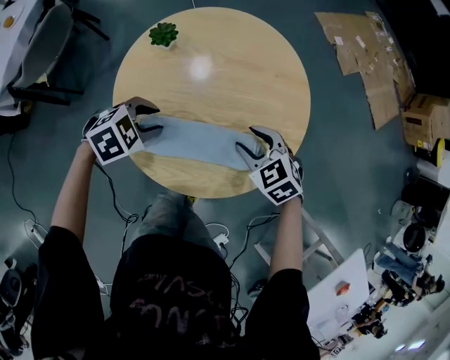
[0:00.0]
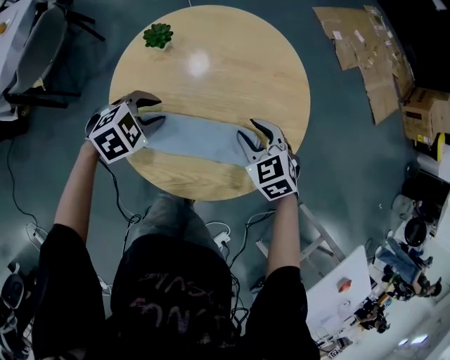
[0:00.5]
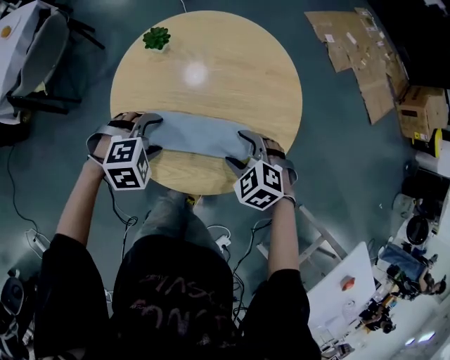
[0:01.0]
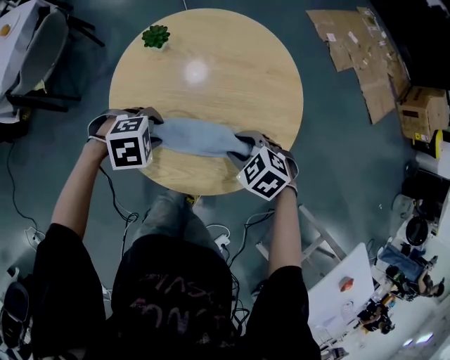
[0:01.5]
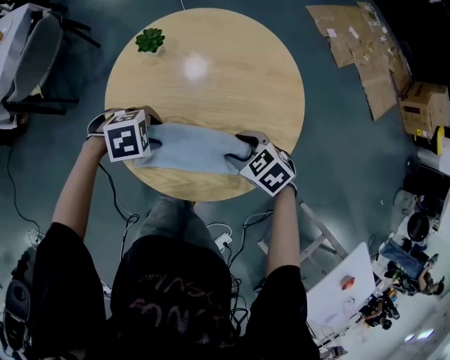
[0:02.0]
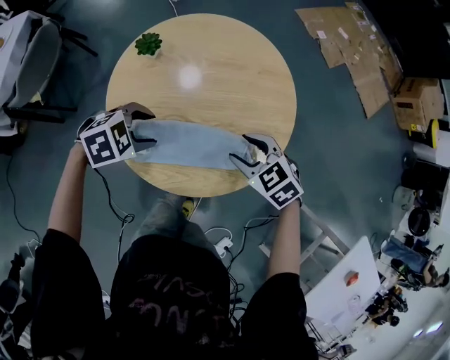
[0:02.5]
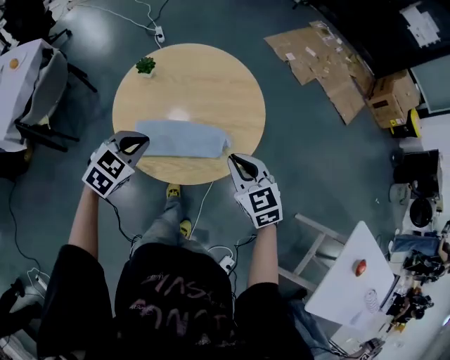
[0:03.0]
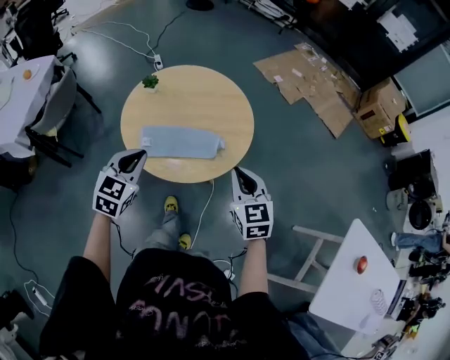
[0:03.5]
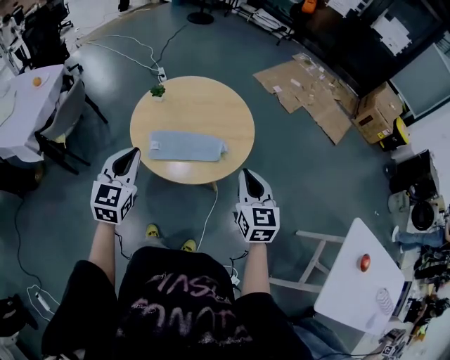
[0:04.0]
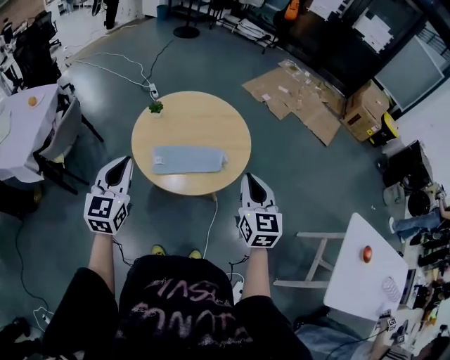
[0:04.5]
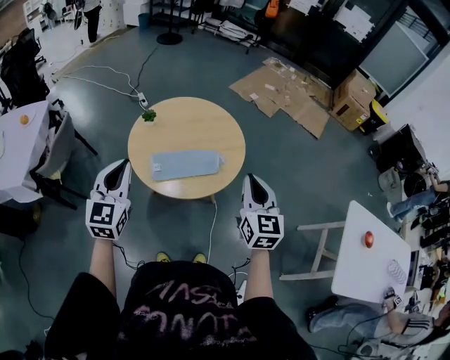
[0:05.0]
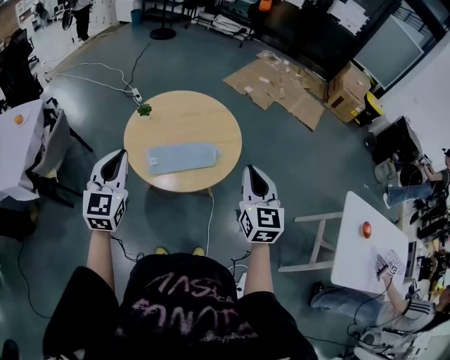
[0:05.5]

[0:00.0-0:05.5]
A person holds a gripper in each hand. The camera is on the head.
0:02.0 to 0:03.5: Both grippers travel together upward, approximately 20 cm. The right gripper points its fingers some 40 degrees further upward, and closes up; the left gripper points its fingers about 40 degrees further upward, and closes its fingers.
0:03.5 to 0:05.5: The left gripper travels upward and to the left by roughly 15 cm, and swivels some 20 degrees. Meanwhile the right gripper travels upward and backward by roughly 15 cm, and rotates some 30 degrees.

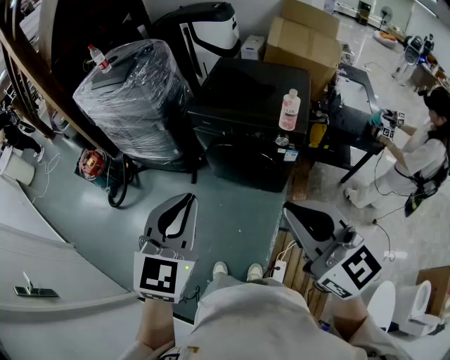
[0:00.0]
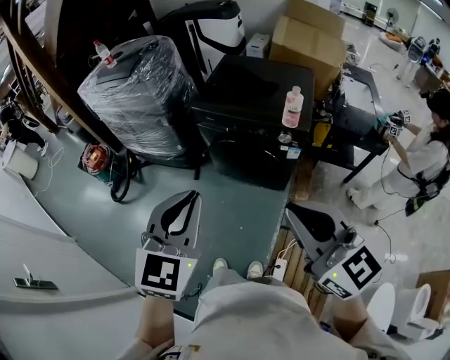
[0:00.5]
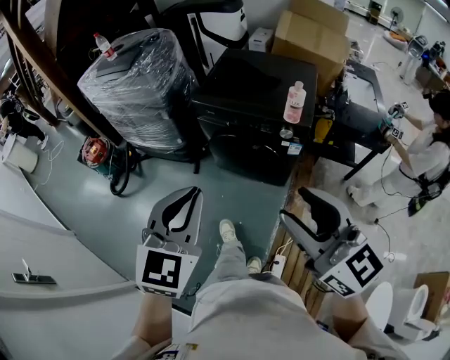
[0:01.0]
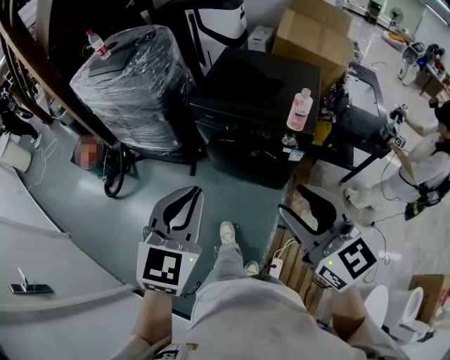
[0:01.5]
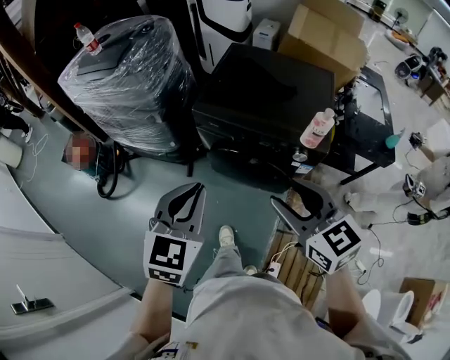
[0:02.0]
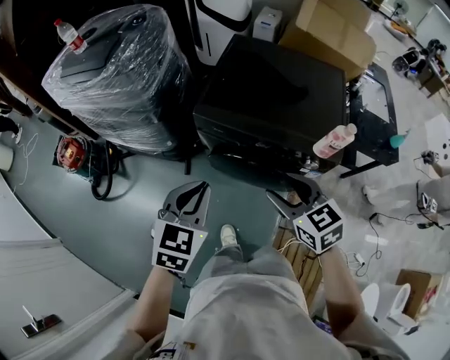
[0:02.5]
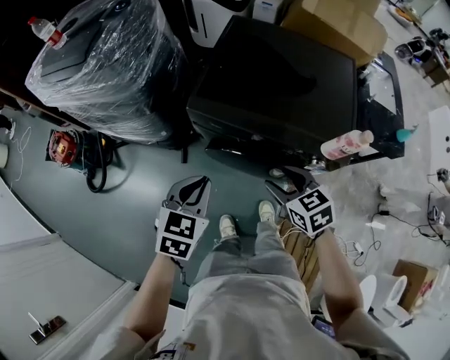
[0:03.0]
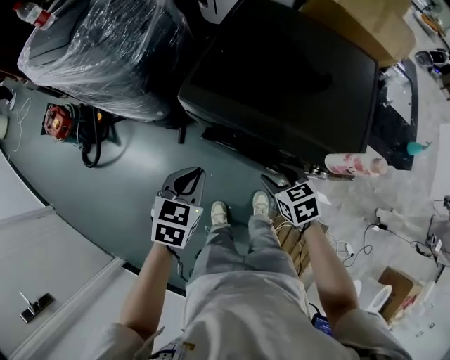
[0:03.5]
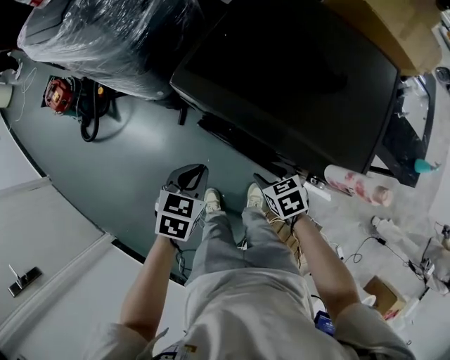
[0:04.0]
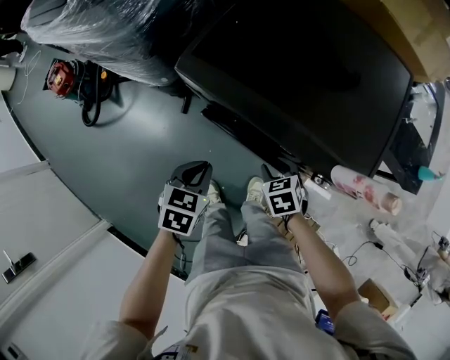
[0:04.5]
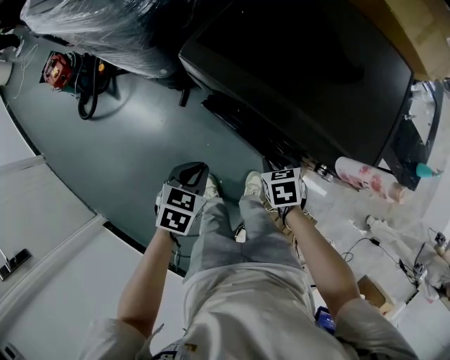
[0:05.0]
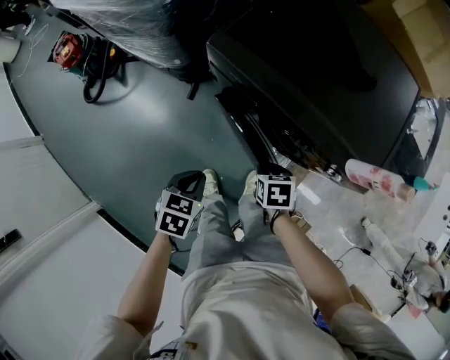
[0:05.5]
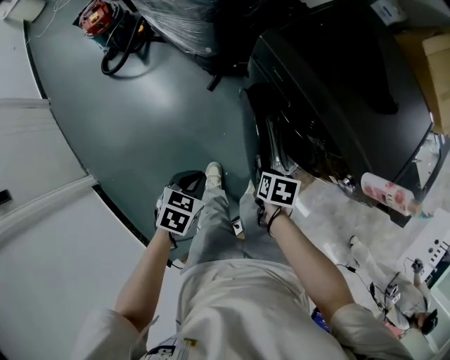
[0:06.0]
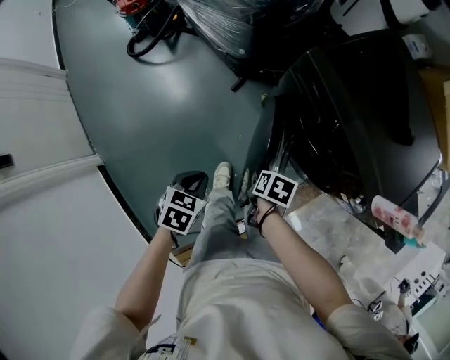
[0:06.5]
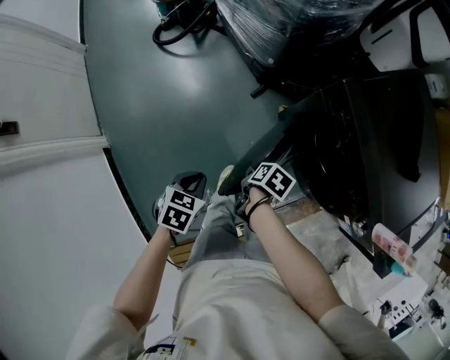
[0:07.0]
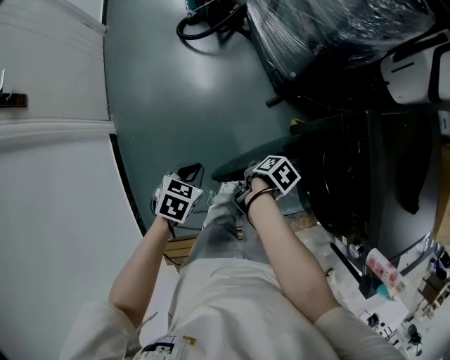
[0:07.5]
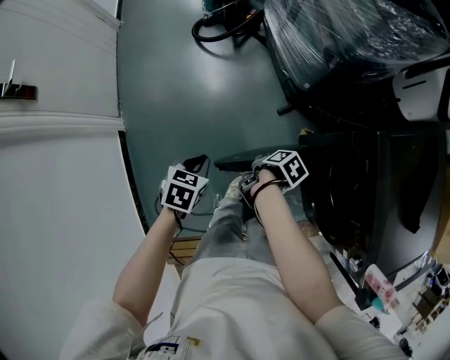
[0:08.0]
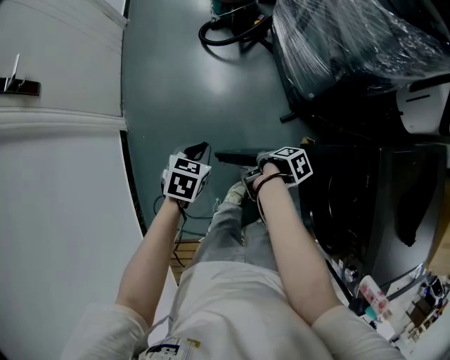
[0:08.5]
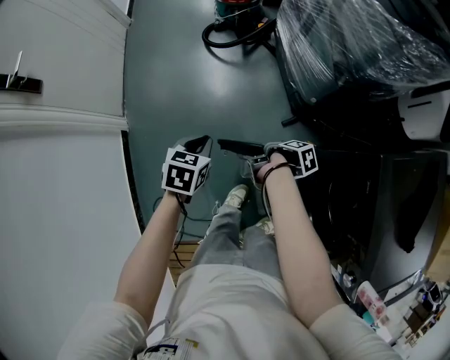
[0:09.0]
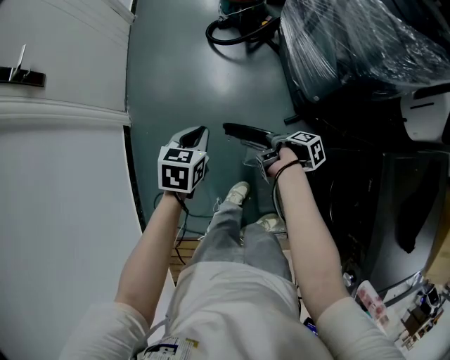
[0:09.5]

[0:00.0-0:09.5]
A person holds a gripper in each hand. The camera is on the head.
0:00.0 to 0:02.0: Both grippers move forward and downward, about 25 cm. The right gripper opens its fingers.
0:02.0 to 0:04.0: Both grippers travel together downward and forward, roughly 40 cm. The right gripper points its fingers roughly 40 degrees further downward. Meanwhile the left gripper changes its angle by approximately 40 degrees.
0:04.0 to 0:05.5: The left gripper goes roughly 15 cm backward and downward, while the right gripper changes place by roughly 5 cm, and changes its angle by about 20 degrees.
0:05.5 to 0:07.5: The left gripper ends up roughly 25 cm from where it was, and turns by approximately 30 degrees, while the right gripper ends up approximately 30 cm from where it was, and swivels roughly 30 degrees.
0:07.5 to 0:09.5: Both grippers move forward, approximately 15 cm. The left gripper turns by about 30 degrees; the right gripper swivels roughly 20 degrees.

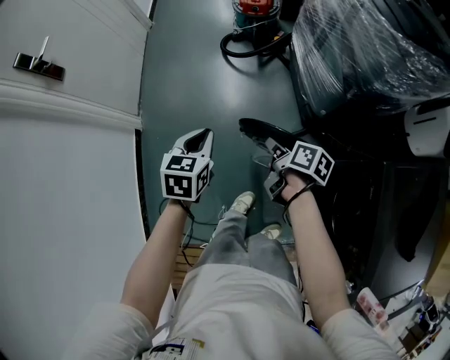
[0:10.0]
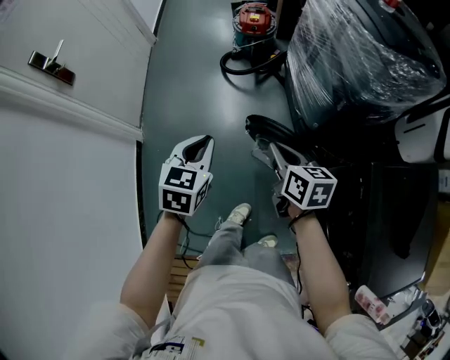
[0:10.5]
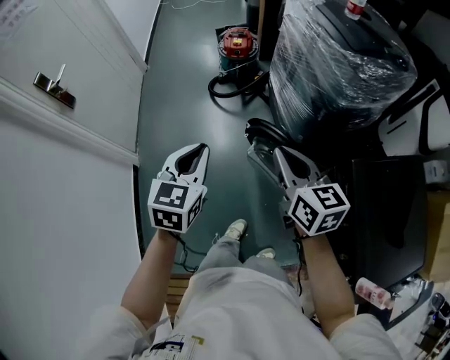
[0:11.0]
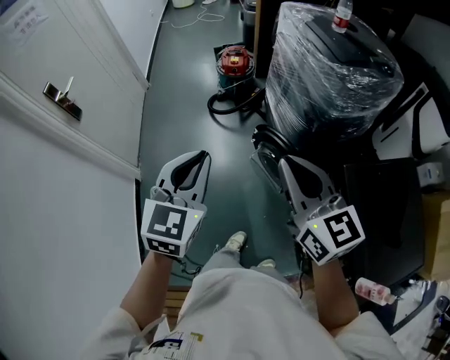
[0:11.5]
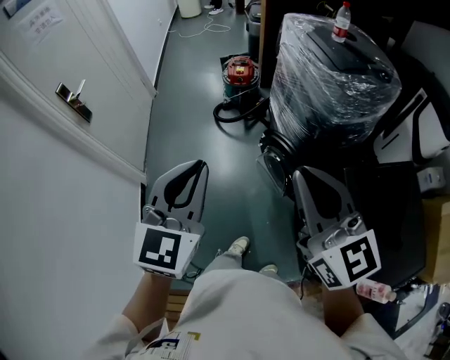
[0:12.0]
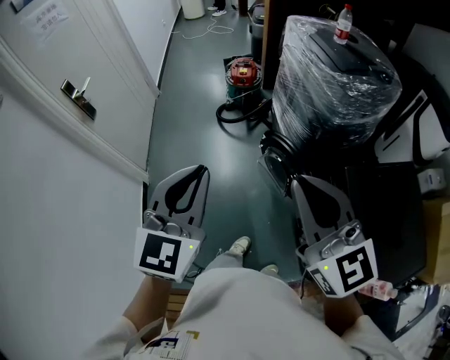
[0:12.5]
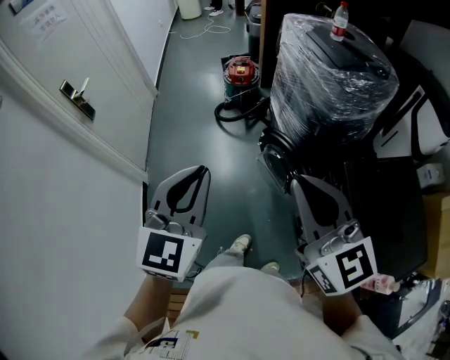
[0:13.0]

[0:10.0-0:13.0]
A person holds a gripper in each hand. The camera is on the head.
0:10.0 to 0:11.5: Both grippers travel together upward, roughly 35 cm. The right gripper rolls counterclockwise, seen from behind, by roughly 60 degrees. The left gripper turns by some 30 degrees.
0:11.5 to 0:13.0: Both grippers travel together backward and upward, approximately 10 cm.

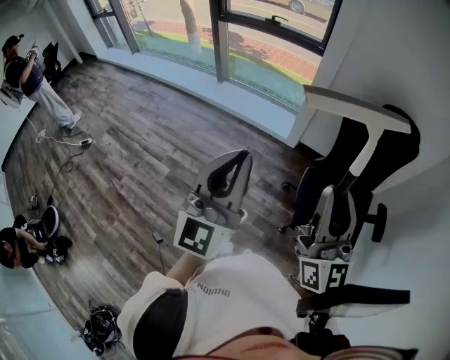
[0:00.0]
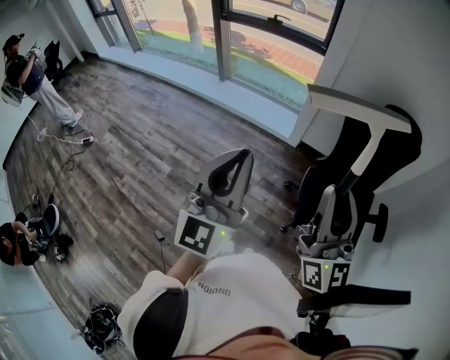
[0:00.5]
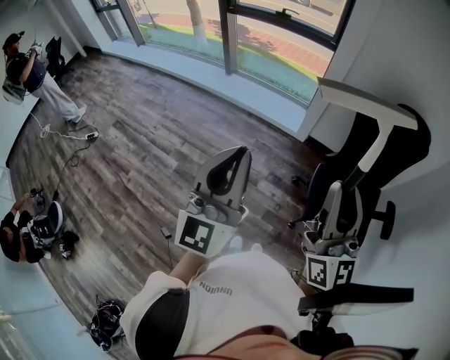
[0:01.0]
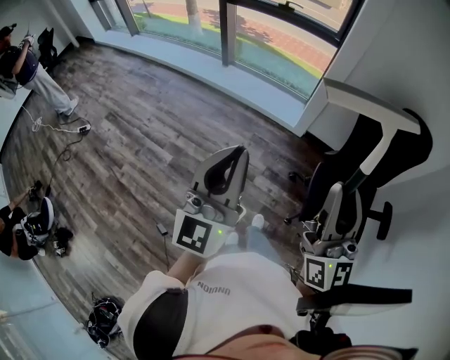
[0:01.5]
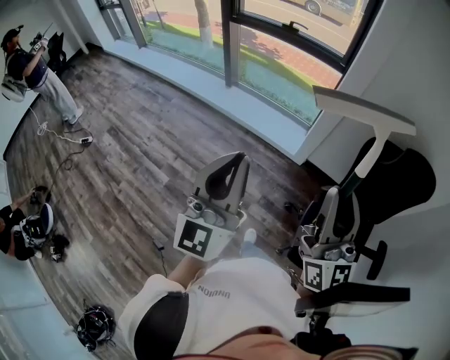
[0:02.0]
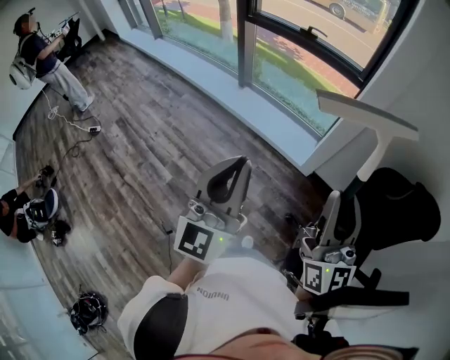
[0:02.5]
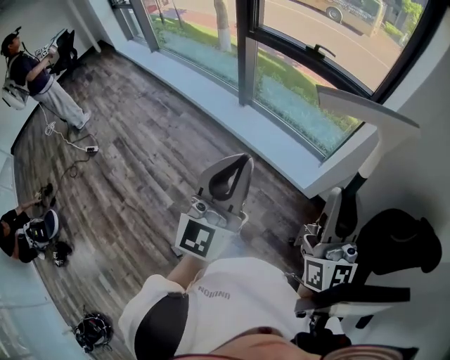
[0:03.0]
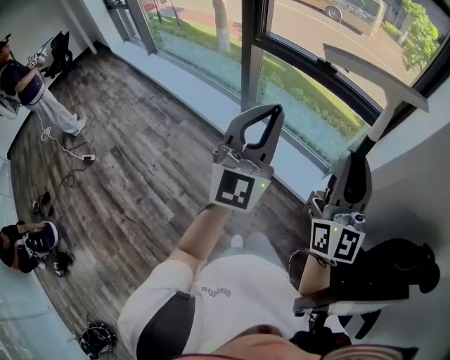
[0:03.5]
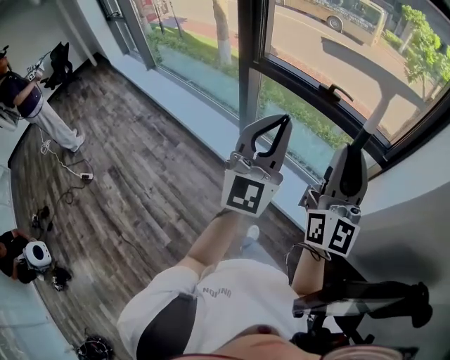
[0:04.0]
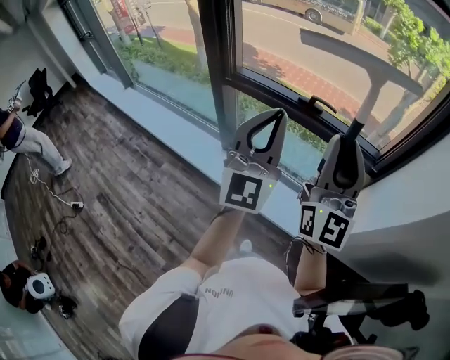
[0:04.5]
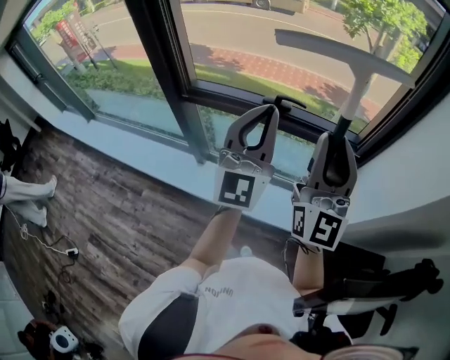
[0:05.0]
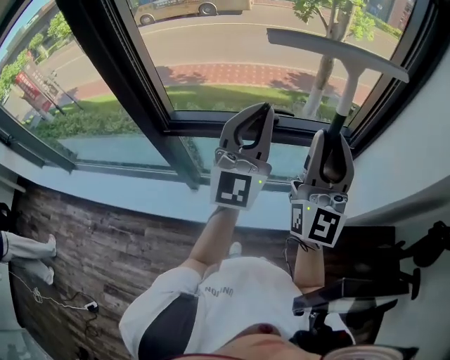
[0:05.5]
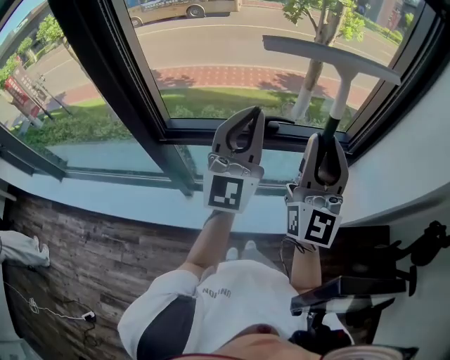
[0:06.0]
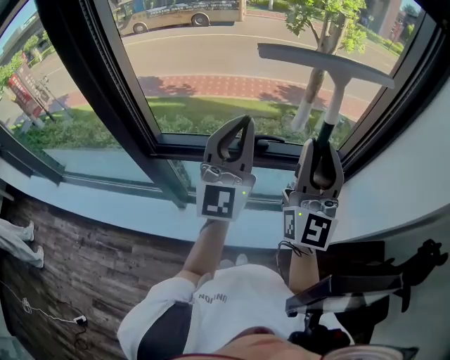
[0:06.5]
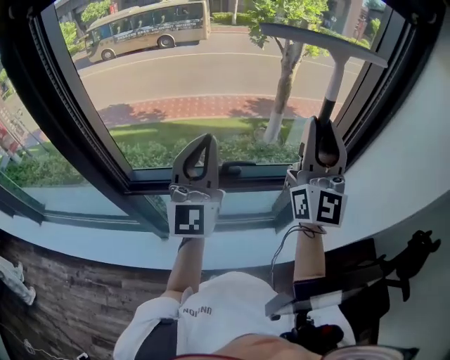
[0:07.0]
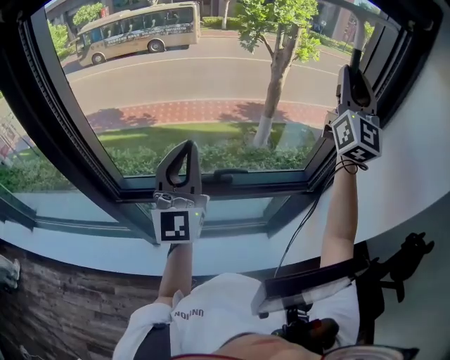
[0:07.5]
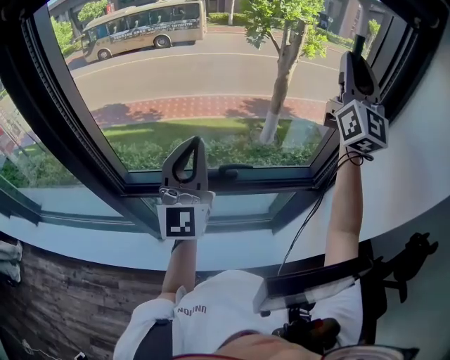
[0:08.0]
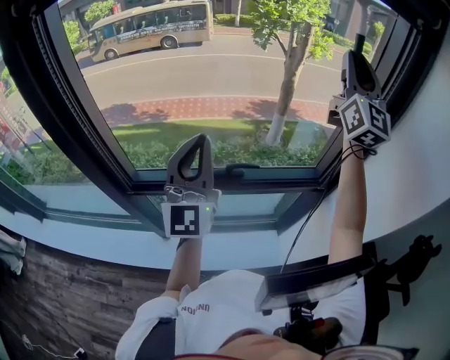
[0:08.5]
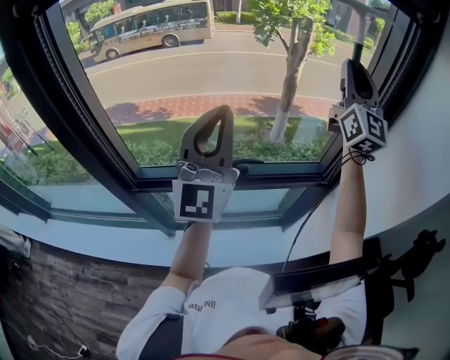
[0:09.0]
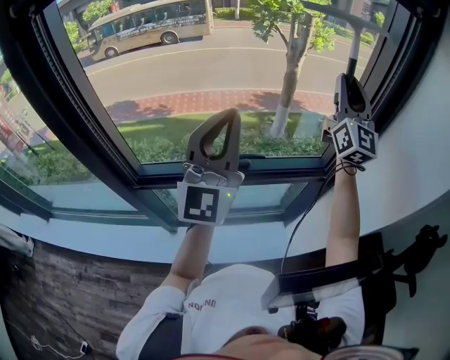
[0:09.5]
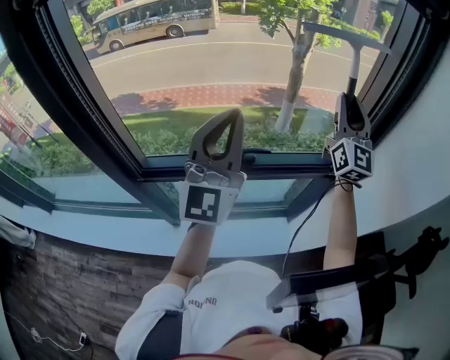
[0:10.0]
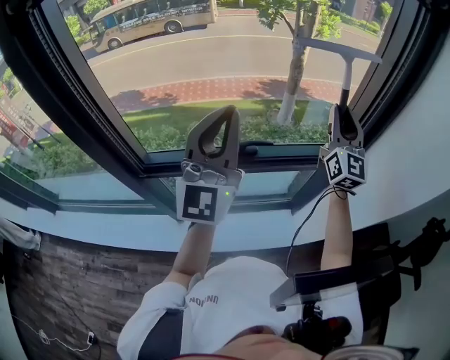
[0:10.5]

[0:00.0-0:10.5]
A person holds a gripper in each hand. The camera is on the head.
0:00.0 to 0:02.0: The two grippers go approximately 15 cm forward.
0:02.0 to 0:04.0: Both grippers are carried forward, about 60 cm. The left gripper rotates roughly 20 degrees.
0:04.0 to 0:06.5: The left gripper shifts by roughly 35 cm, and rotates some 30 degrees. The right gripper ends up about 30 cm from where it was, and swivels about 30 degrees.
0:06.5 to 0:08.5: The right gripper travels forward, upward and to the right by some 30 cm; the left gripper moves some 5 cm.
0:08.5 to 0:10.5: The right gripper shifts some 20 cm downward.
